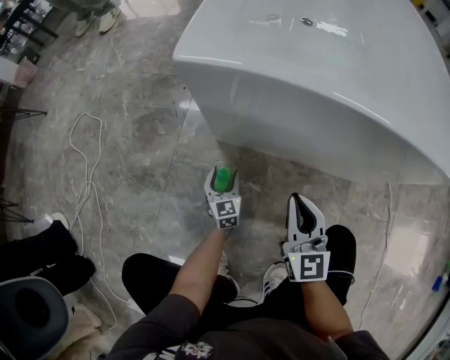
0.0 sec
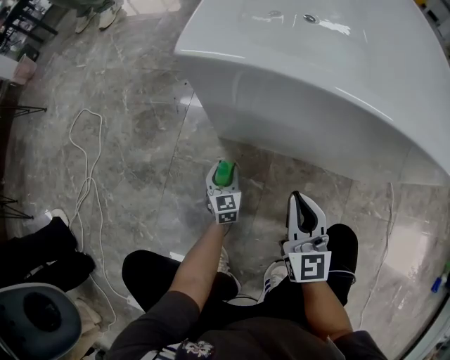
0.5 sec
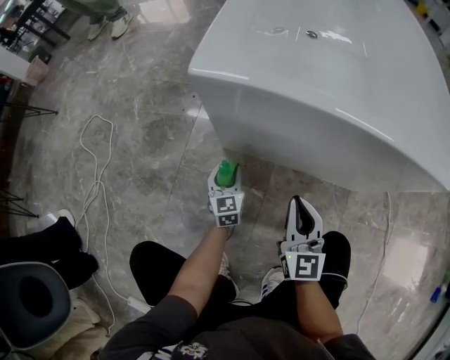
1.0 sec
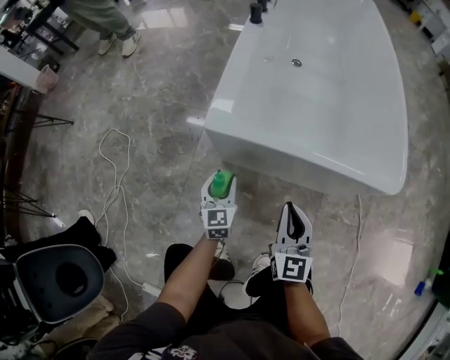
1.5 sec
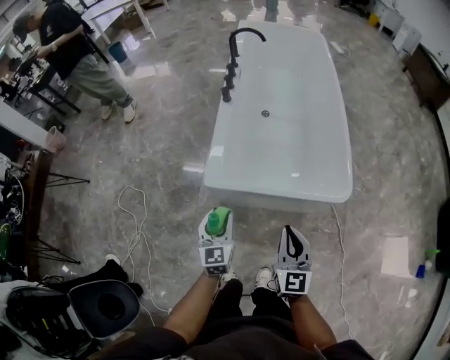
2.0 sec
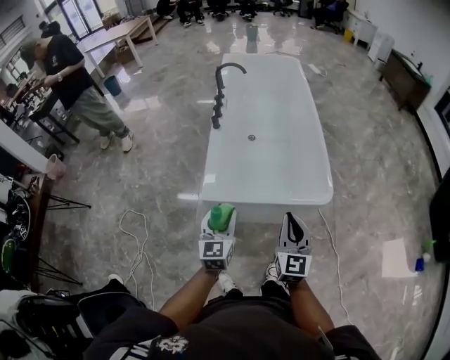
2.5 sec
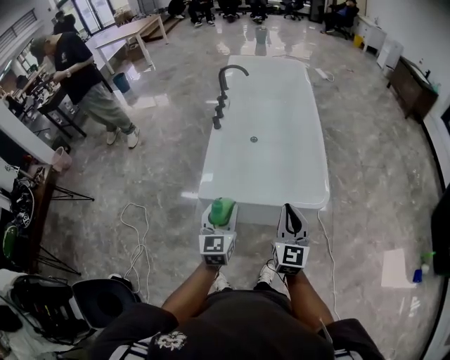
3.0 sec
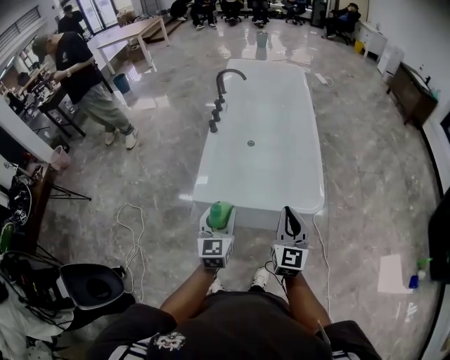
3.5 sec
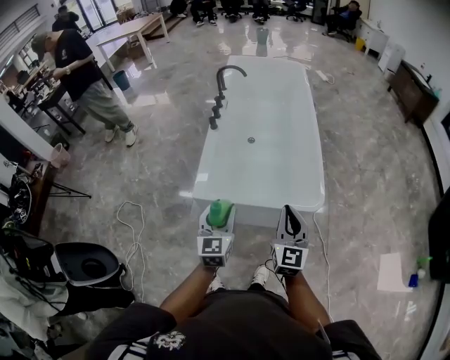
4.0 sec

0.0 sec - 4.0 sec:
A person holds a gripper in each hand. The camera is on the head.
0.0 sec - 2.0 sec: The two grippers go about 70 cm upward. The left gripper closes its fingers.
2.0 sec - 4.0 sec: Both grippers travel together upward and to the right, roughly 20 cm.

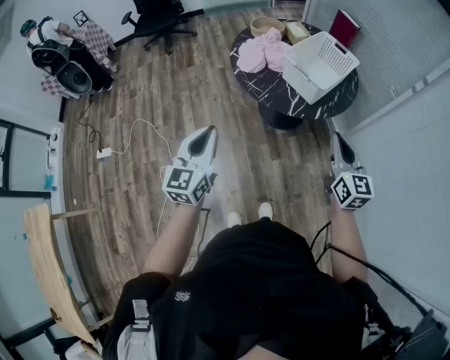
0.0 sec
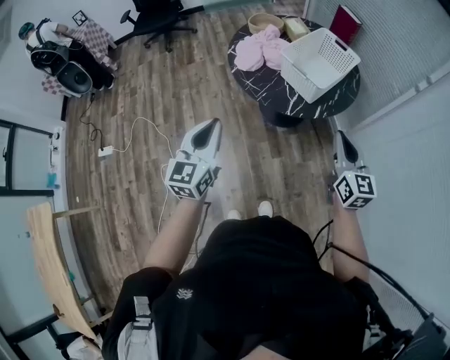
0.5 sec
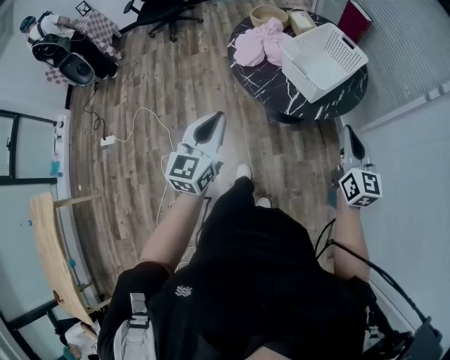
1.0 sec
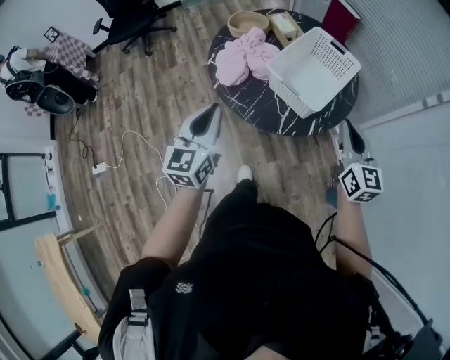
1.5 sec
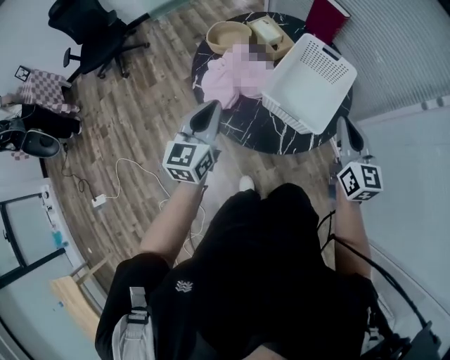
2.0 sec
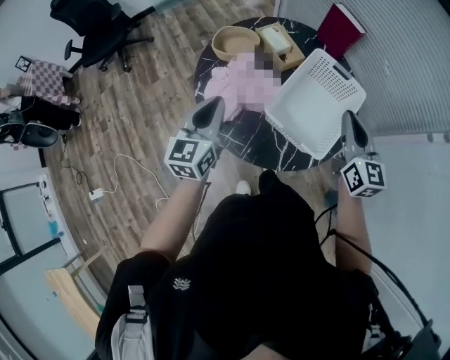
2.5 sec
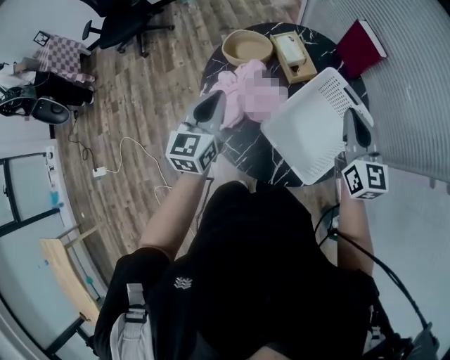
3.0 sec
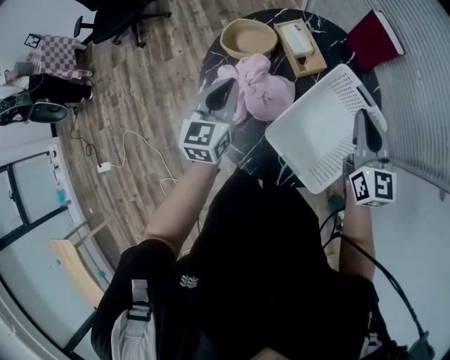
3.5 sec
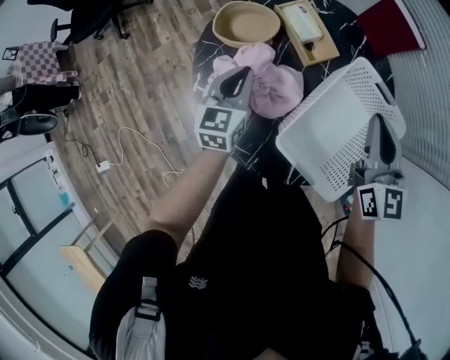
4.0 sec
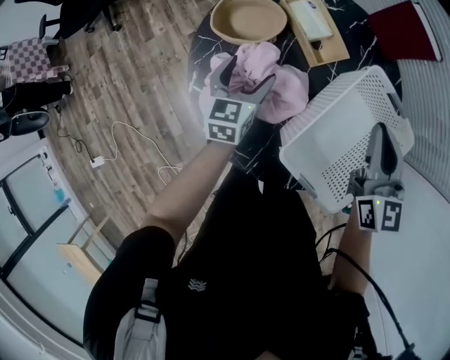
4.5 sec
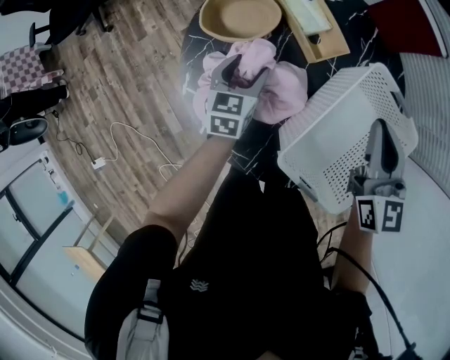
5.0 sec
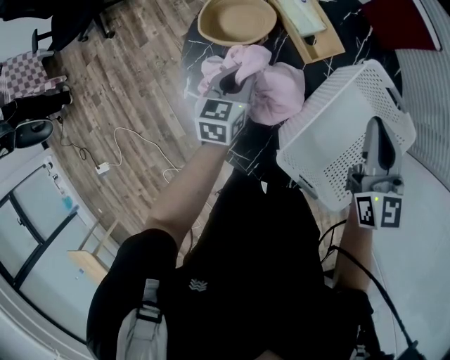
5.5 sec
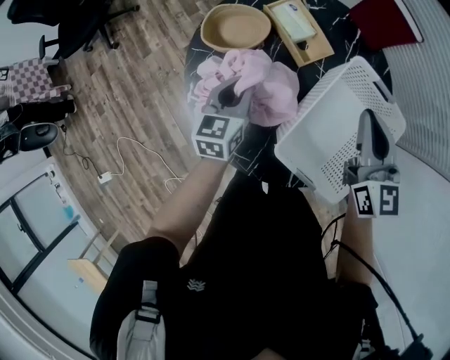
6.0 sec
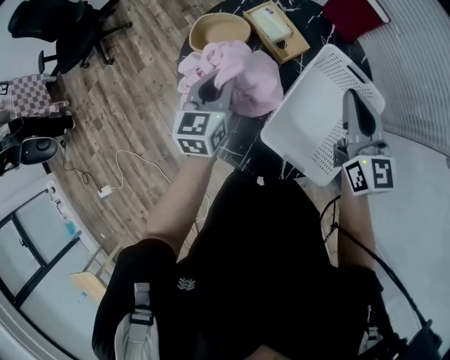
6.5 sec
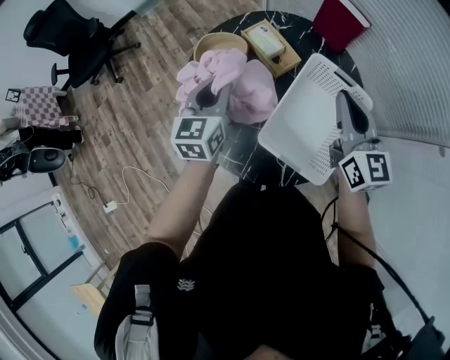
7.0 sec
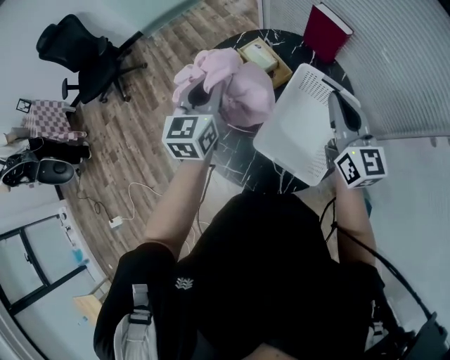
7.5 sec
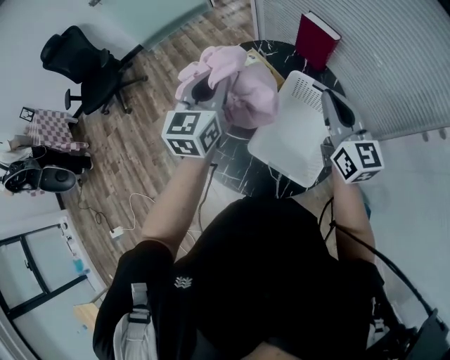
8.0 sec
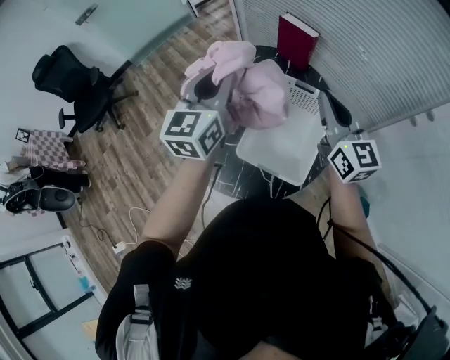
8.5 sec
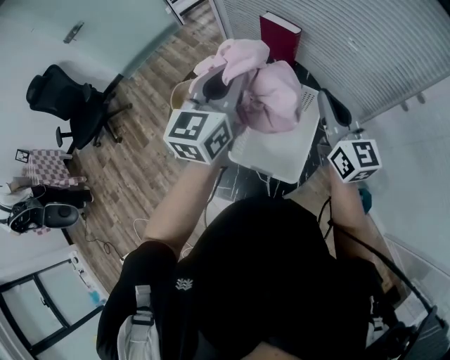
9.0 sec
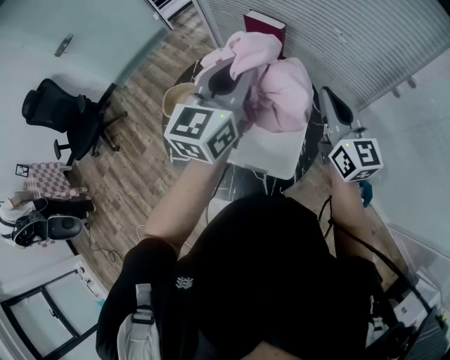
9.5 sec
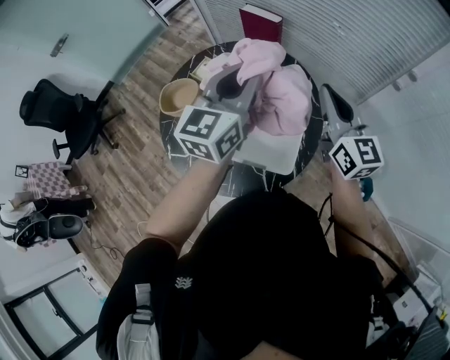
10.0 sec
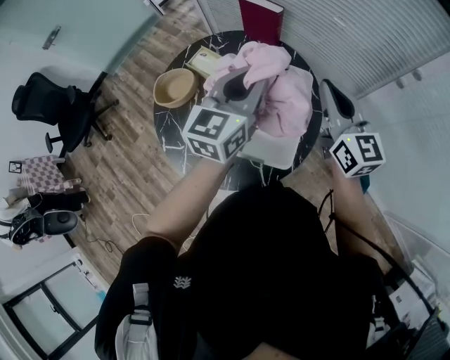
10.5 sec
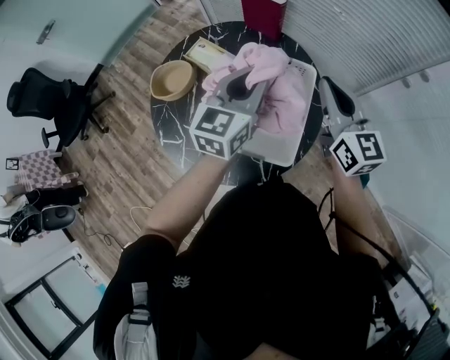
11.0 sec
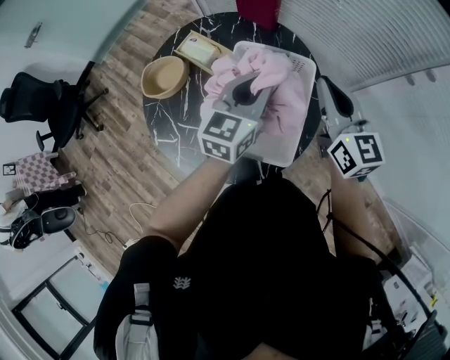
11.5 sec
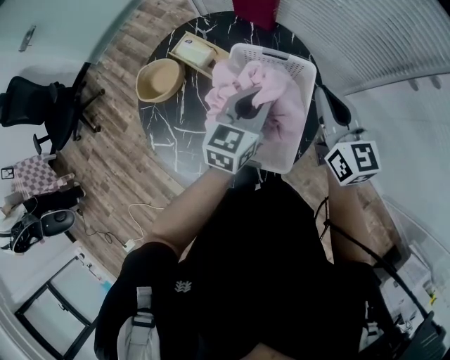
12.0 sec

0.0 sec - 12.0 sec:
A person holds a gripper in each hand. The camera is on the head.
0.0 sec - 2.0 sec: The two grippers go about 35 cm forward.
2.0 sec - 4.0 sec: The left gripper shifts about 35 cm forward and downward; the right gripper moves forward, roughly 25 cm.
4.0 sec - 6.0 sec: The left gripper moves approximately 10 cm downward and comes back, and opens, then closes again.
6.0 sec - 8.0 sec: The right gripper shifts roughly 15 cm upward; the left gripper goes roughly 30 cm upward, and rotates approximately 20 degrees.
8.0 sec - 10.0 sec: The right gripper goes approximately 15 cm to the right, while the left gripper is displaced to the right by roughly 20 cm, and changes its angle by roughly 30 degrees.
10.0 sec - 12.0 sec: The left gripper shifts about 20 cm downward. Meanwhile the right gripper heads downward, covering some 10 cm.

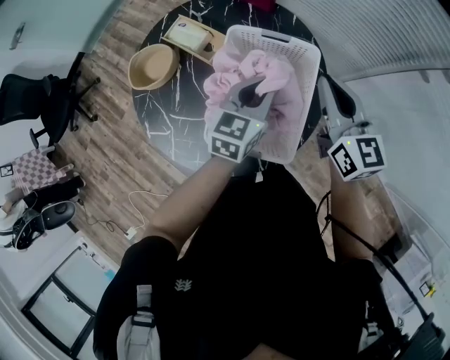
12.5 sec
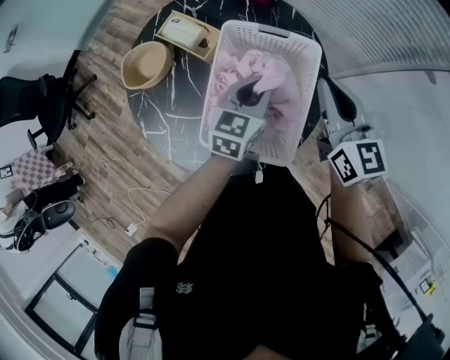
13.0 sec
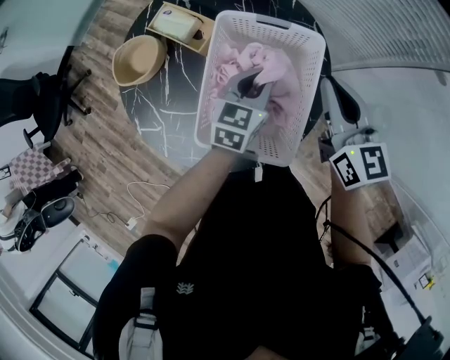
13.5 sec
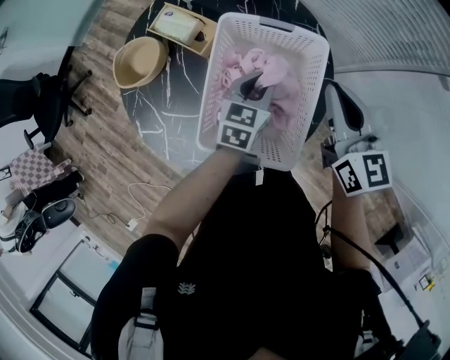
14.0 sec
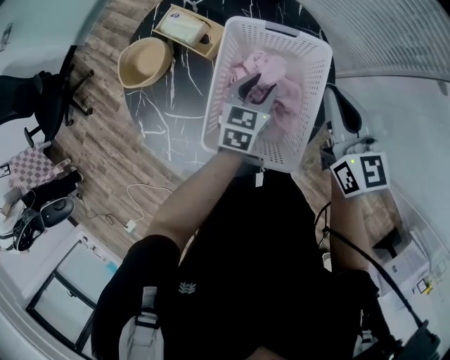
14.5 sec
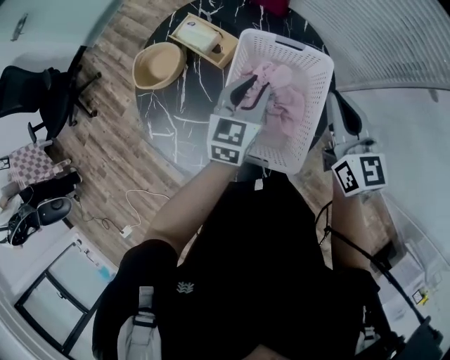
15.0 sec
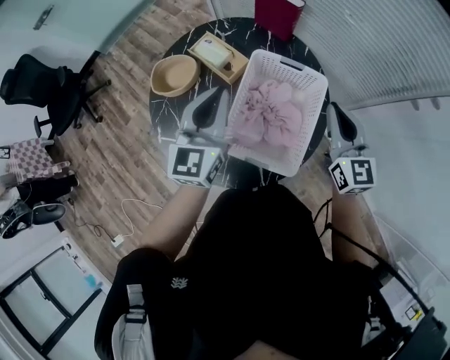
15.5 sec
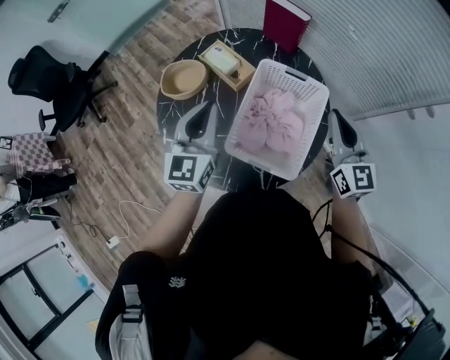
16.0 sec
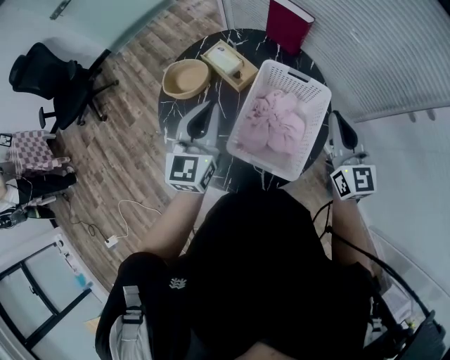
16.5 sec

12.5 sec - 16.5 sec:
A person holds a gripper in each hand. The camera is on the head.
12.5 sec - 14.5 sec: The left gripper is displaced downward by some 10 cm, and opens up.
14.5 sec - 16.5 sec: The left gripper goes some 30 cm upward and to the left, rotates some 40 degrees, and closes. Meanwhile the right gripper shifts roughly 10 cm upward.

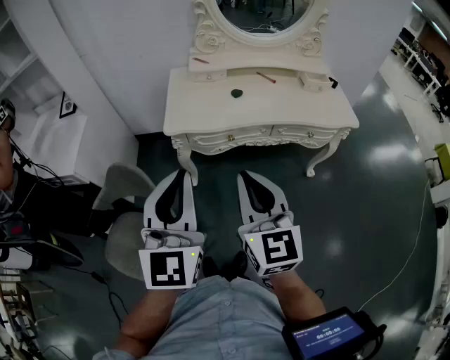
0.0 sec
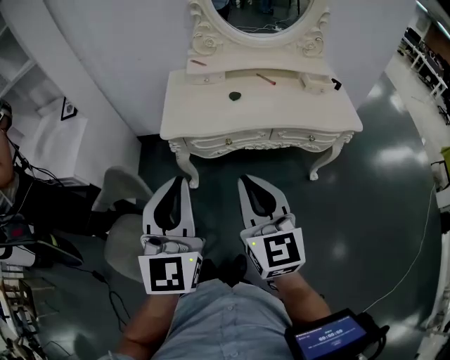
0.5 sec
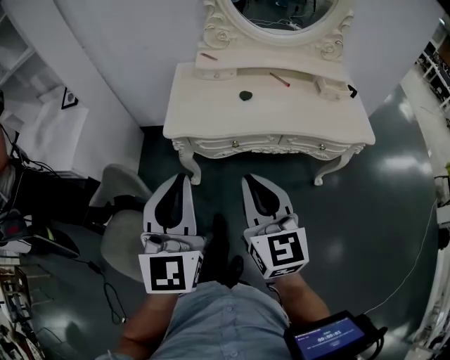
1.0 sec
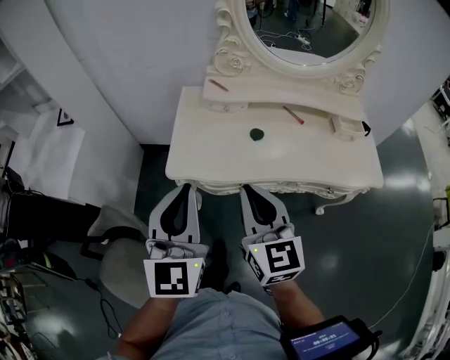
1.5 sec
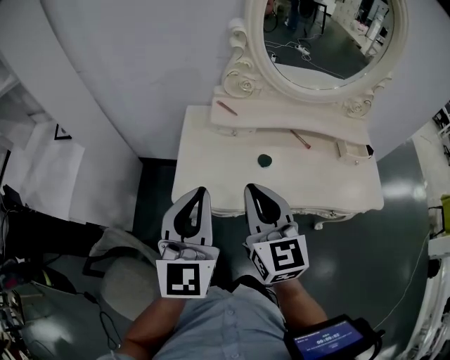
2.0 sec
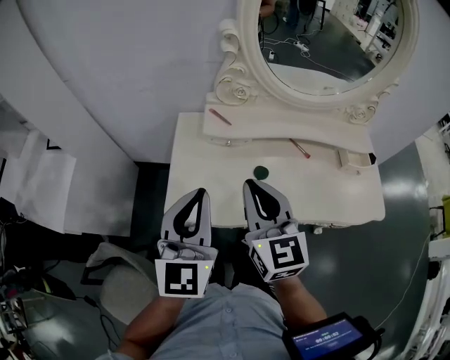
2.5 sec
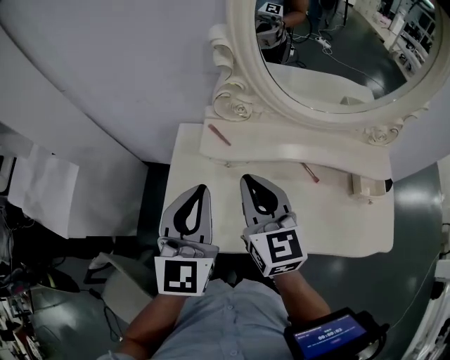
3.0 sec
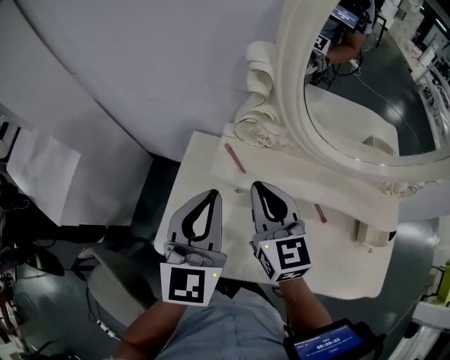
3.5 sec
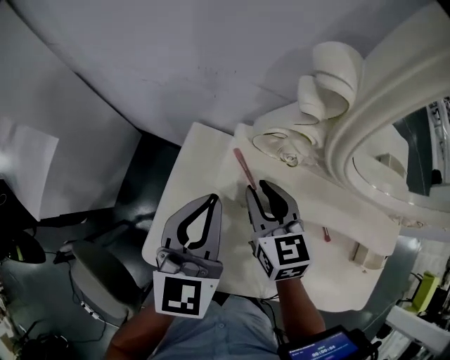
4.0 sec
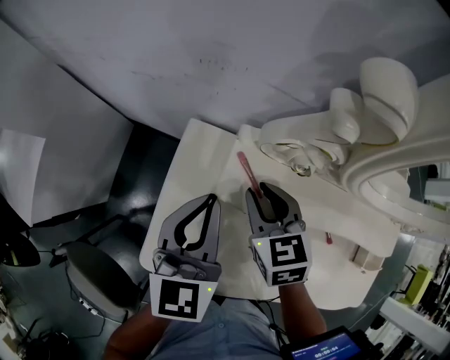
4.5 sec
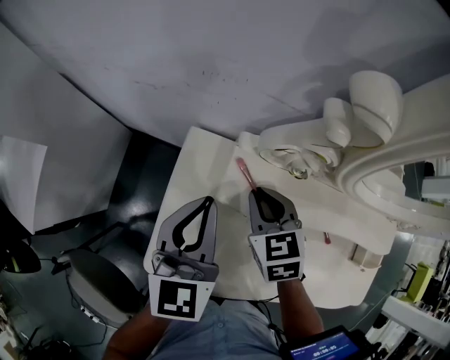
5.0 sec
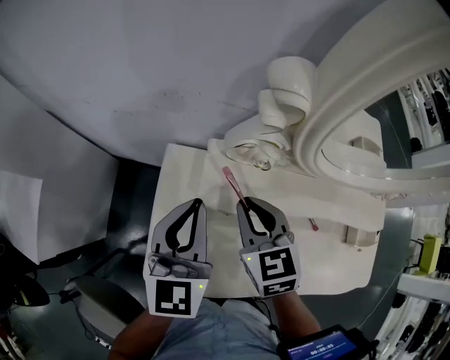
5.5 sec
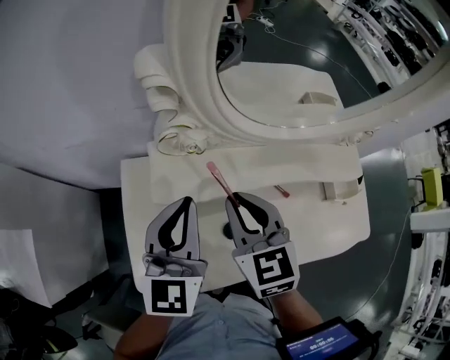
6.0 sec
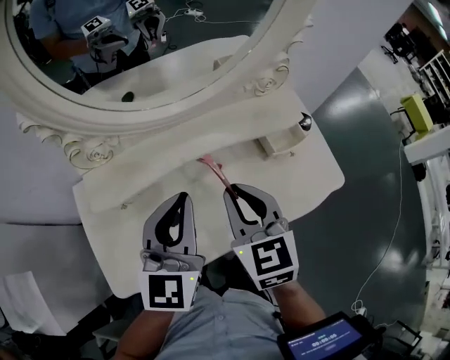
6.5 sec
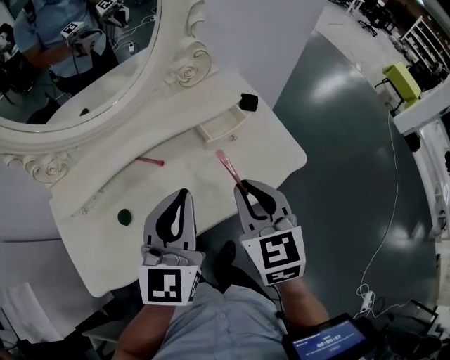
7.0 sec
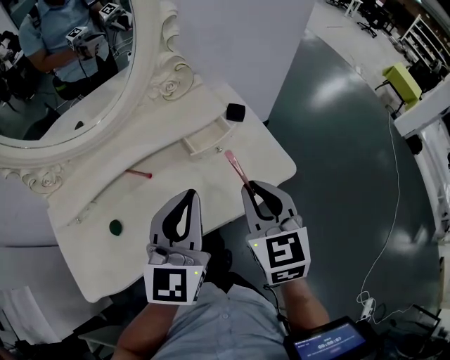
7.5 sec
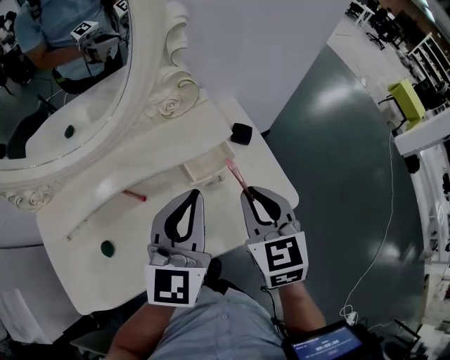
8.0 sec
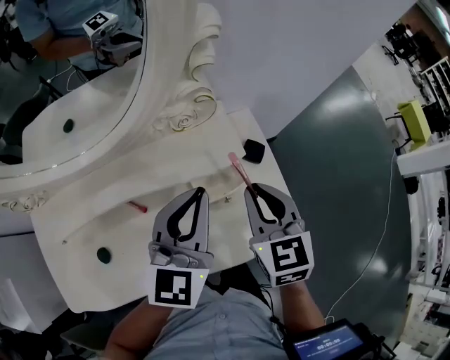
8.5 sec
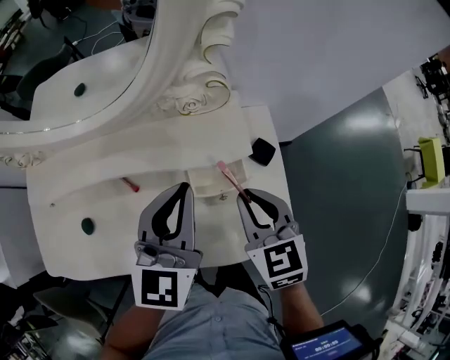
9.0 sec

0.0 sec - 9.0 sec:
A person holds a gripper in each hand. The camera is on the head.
0.0 sec - 2.0 sec: The grippers both shift forward by about 30 cm.
2.0 sec - 4.5 sec: The grippers both shift forward and downward by roughly 35 cm. The left gripper turns by some 30 degrees. Meanwhile the right gripper tilts its fingers approximately 30 degrees downward.
4.5 sec - 7.0 sec: The right gripper ends up approximately 40 cm from where it was, and changes its angle by approximately 50 degrees, while the left gripper ends up some 35 cm from where it was, and rotates roughly 50 degrees.
7.0 sec - 9.0 sec: The grippers both shift forward and to the right by approximately 15 cm. The right gripper turns by some 30 degrees; the left gripper rotates approximately 20 degrees.
